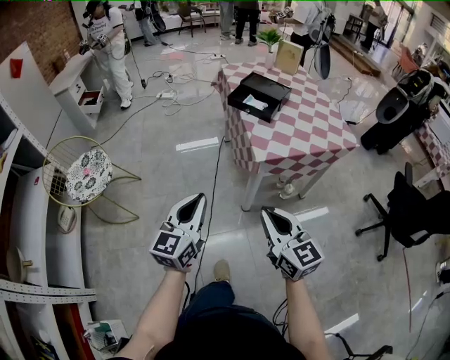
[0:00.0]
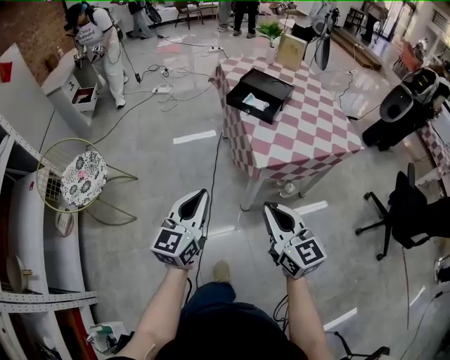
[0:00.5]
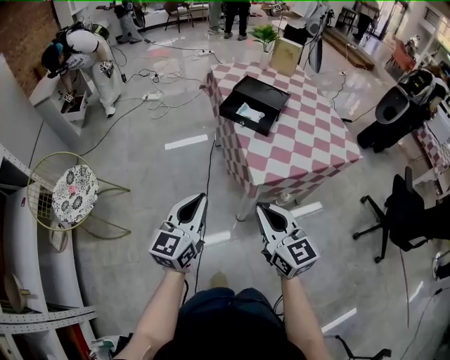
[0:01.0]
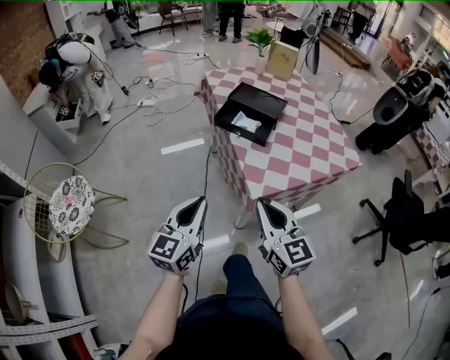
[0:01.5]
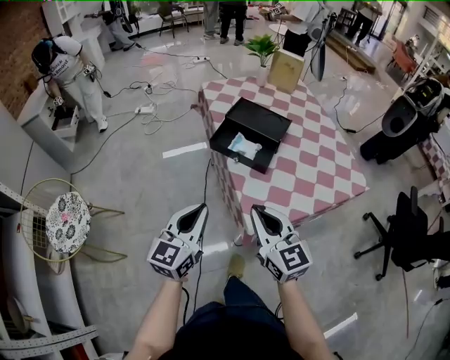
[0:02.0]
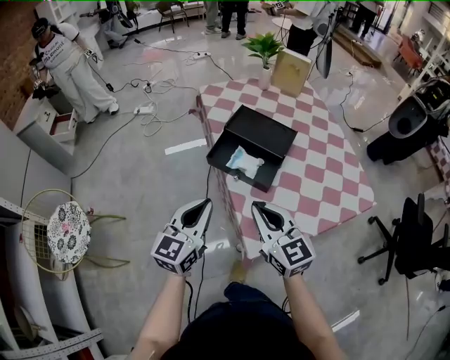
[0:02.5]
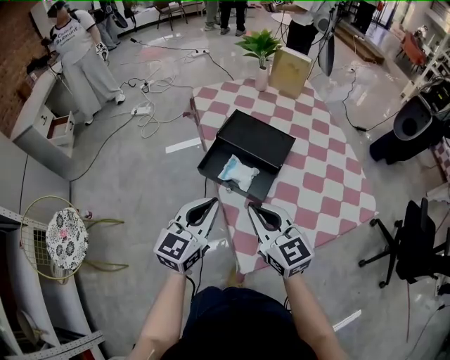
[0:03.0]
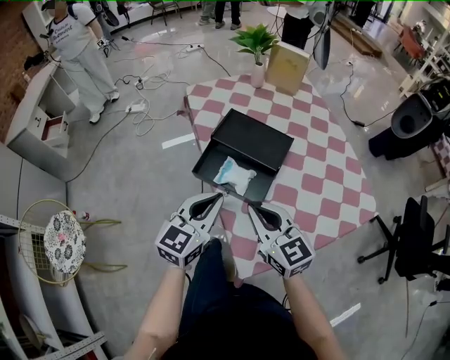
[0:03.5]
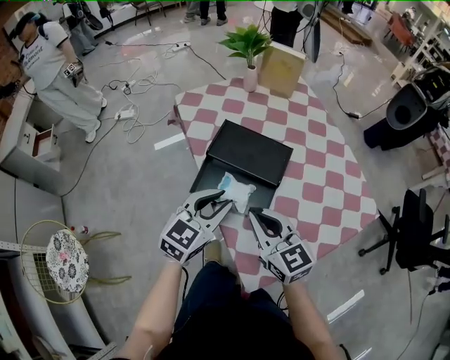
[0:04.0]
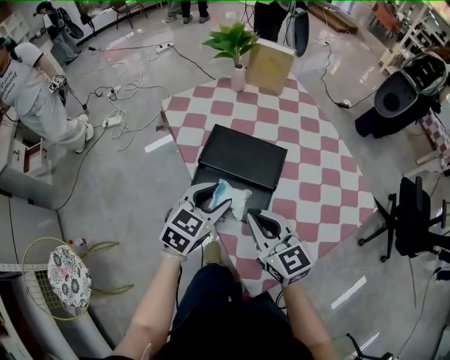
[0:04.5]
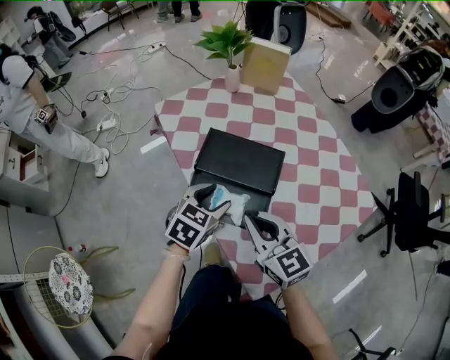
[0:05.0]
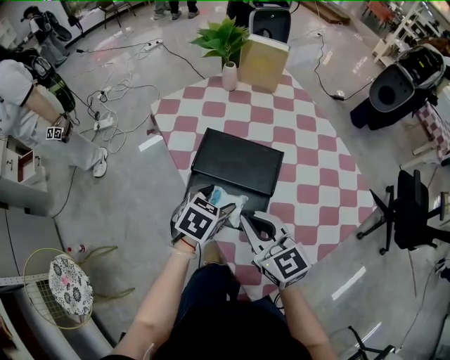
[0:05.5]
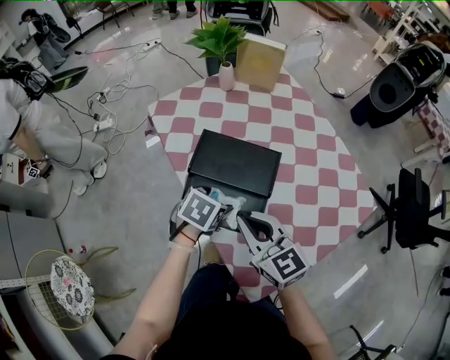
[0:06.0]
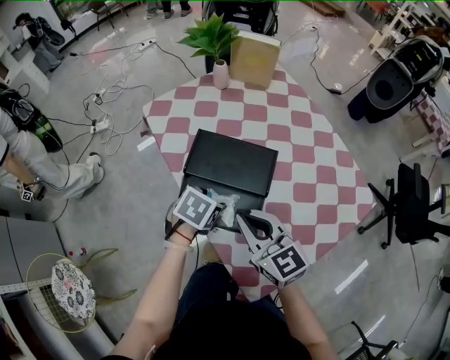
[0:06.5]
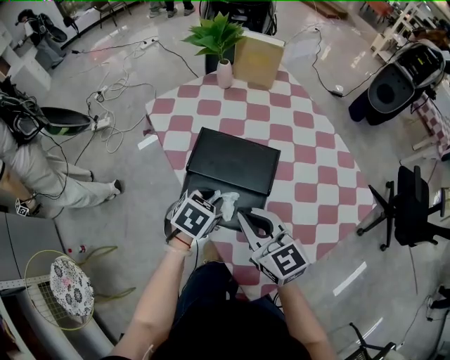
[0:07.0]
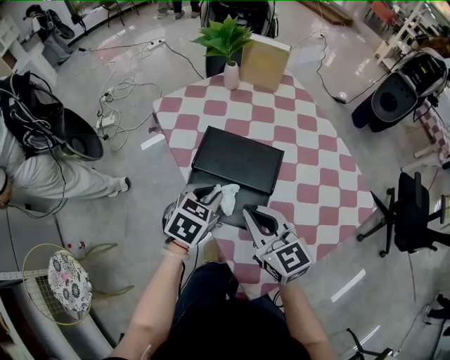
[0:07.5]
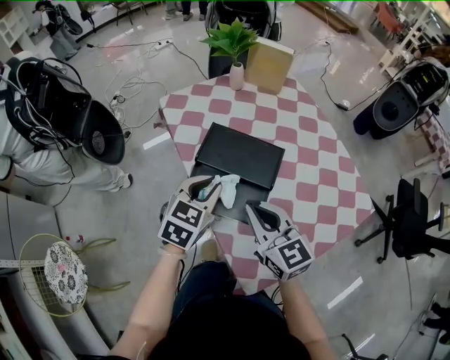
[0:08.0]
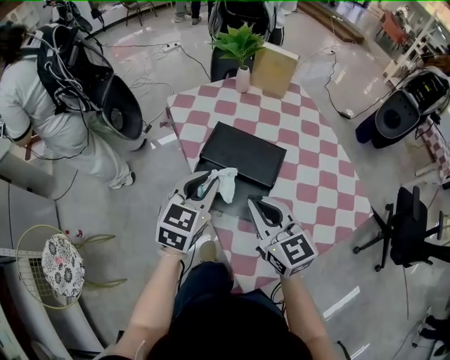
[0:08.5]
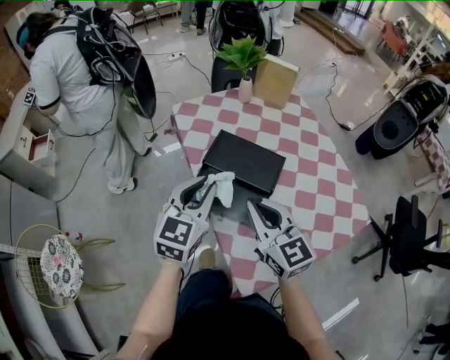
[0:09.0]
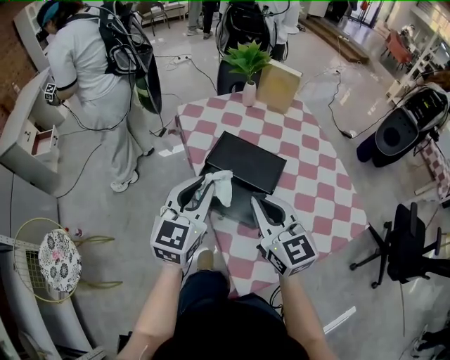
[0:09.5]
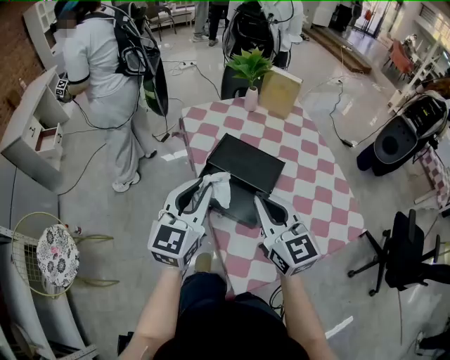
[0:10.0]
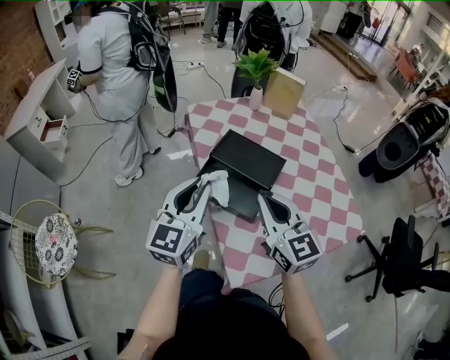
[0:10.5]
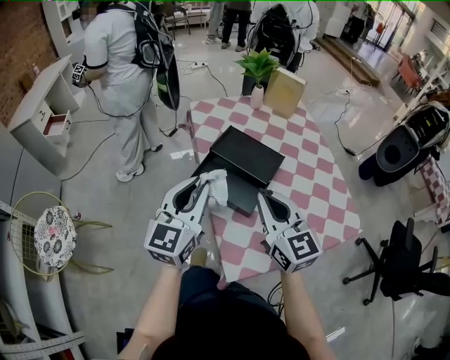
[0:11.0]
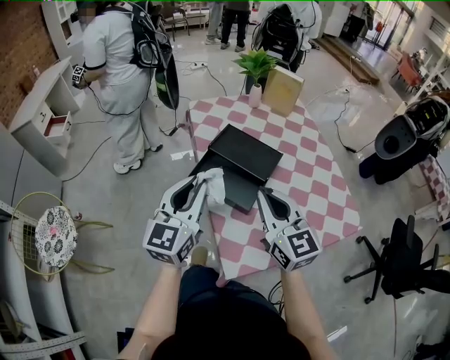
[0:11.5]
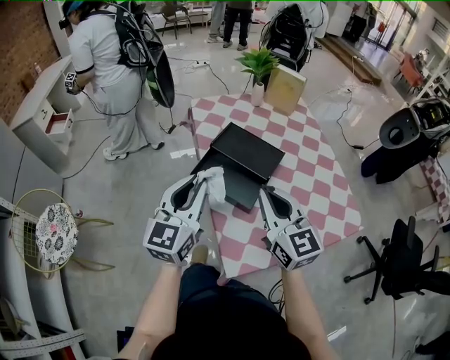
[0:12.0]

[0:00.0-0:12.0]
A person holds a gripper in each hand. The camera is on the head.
0:00.0 to 0:02.0: The grippers both shift forward by roughly 30 cm.
0:02.0 to 0:04.0: Both grippers move forward, some 25 cm. The left gripper rotates roughly 30 degrees.
0:04.0 to 0:06.0: The left gripper goes about 15 cm downward and forward, tips its fingers downward by roughly 40 degrees, and opens up. The right gripper shifts by about 5 cm.
0:06.0 to 0:08.0: The left gripper heads upward, covering some 10 cm, rotates some 30 degrees, and closes.
0:08.0 to 0:10.0: The left gripper goes some 15 cm upward and backward, and turns by some 30 degrees. Meanwhile the right gripper shifts about 10 cm upward.
0:10.0 to 0:12.0: Both grippers move backward, roughly 5 cm.

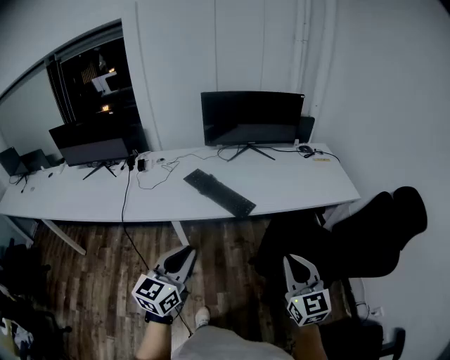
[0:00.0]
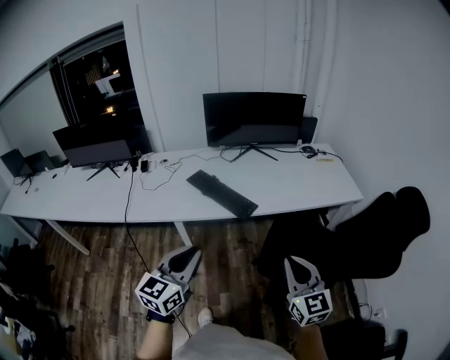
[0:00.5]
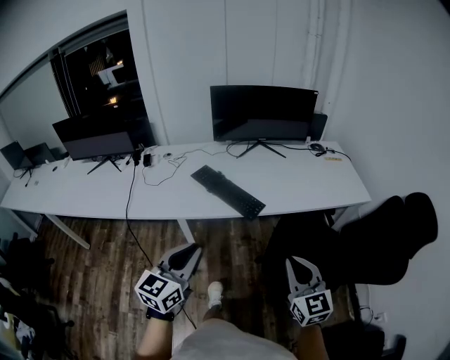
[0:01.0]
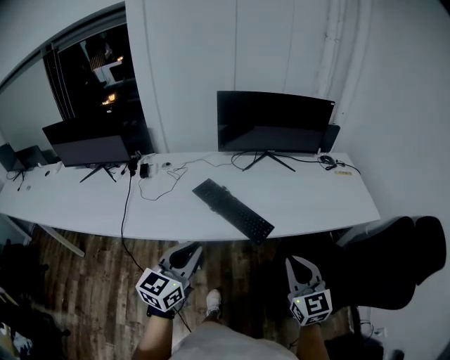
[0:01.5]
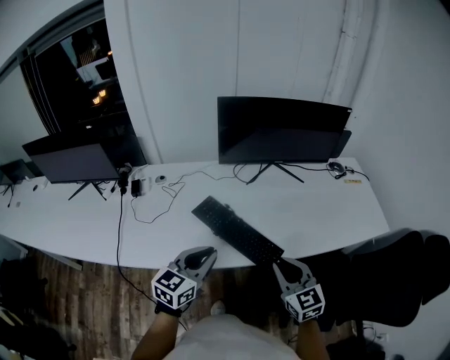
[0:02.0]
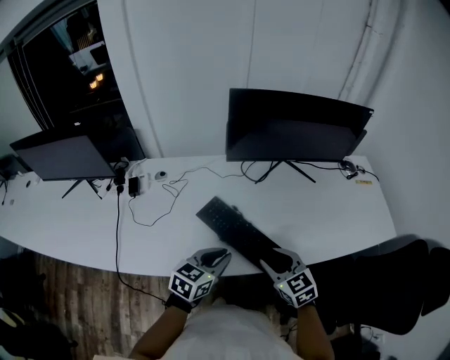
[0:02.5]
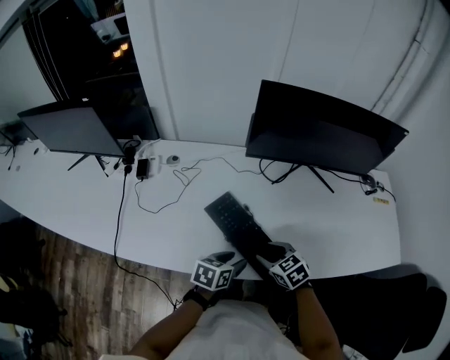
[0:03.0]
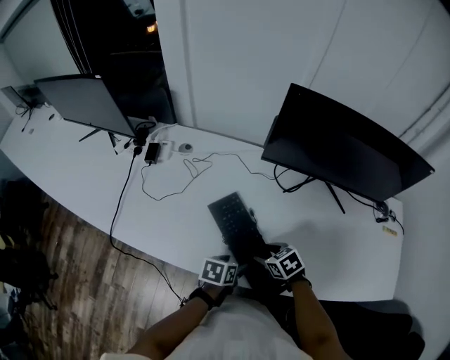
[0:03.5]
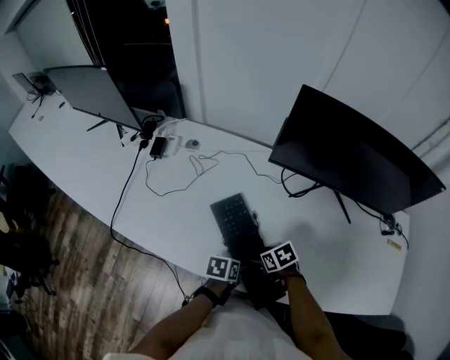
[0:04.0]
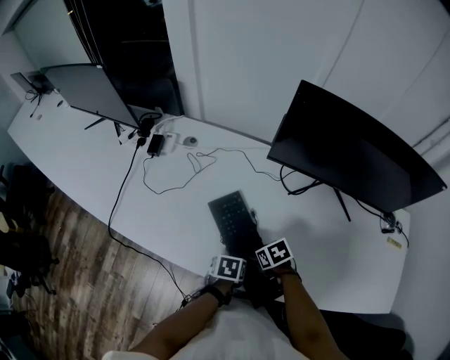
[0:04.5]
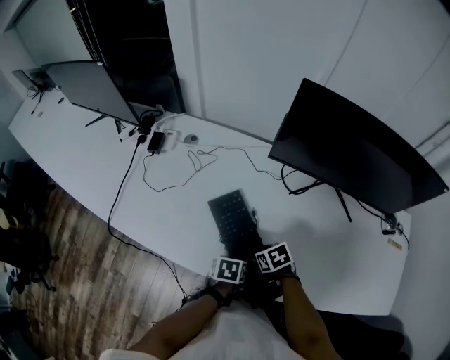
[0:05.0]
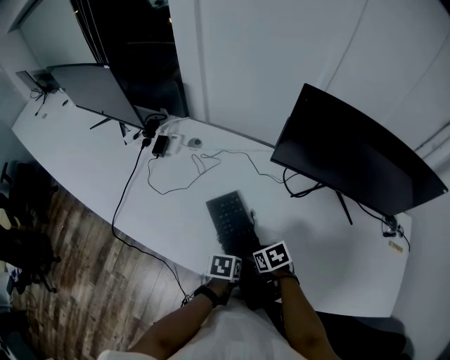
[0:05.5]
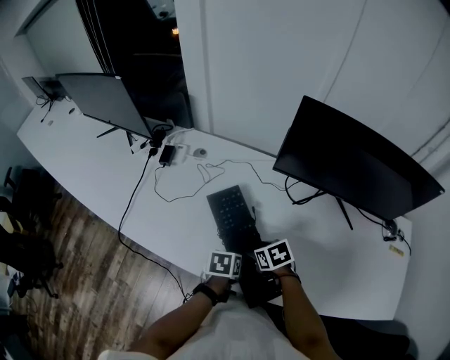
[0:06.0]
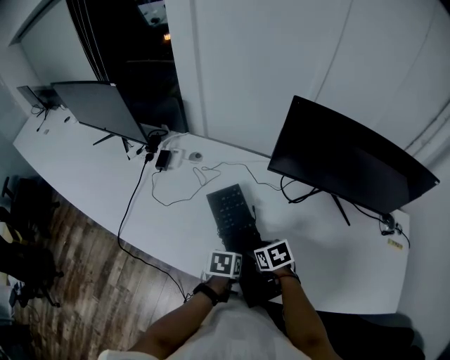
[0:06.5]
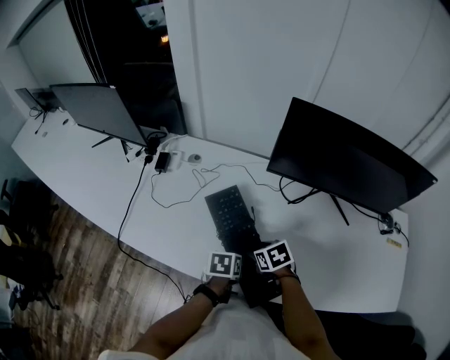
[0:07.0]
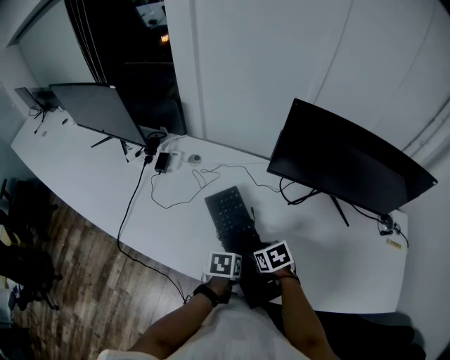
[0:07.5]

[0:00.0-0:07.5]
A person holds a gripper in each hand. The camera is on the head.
0:00.0 to 0:02.0: The left gripper heads forward, covering roughly 30 cm. Meanwhile the right gripper heads forward and to the left, covering roughly 35 cm.
0:02.0 to 0:04.0: Both grippers move downward, some 25 cm. The left gripper angles its fingers downward, by some 40 degrees, and opens. The right gripper tilts its fingers some 50 degrees downward, and opens.
0:04.0 to 0:05.5: The grippers stay close to where they were, moving slightly.
0:05.5 to 0:07.5: The left gripper changes place by approximately 5 cm, while the right gripper goes approximately 5 cm upward.

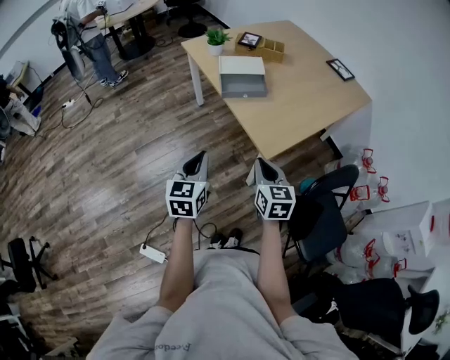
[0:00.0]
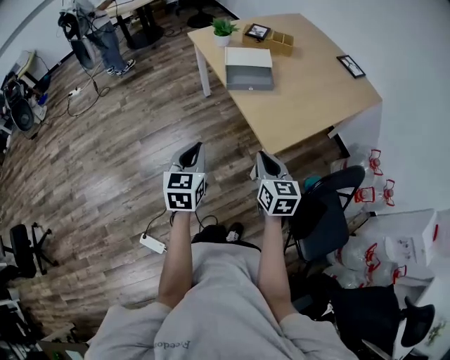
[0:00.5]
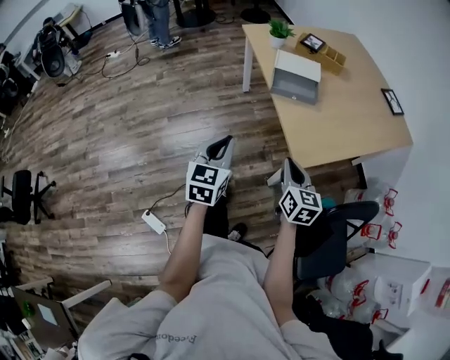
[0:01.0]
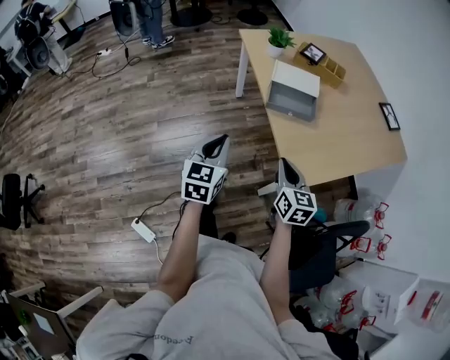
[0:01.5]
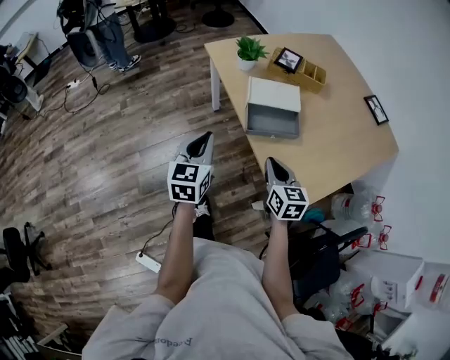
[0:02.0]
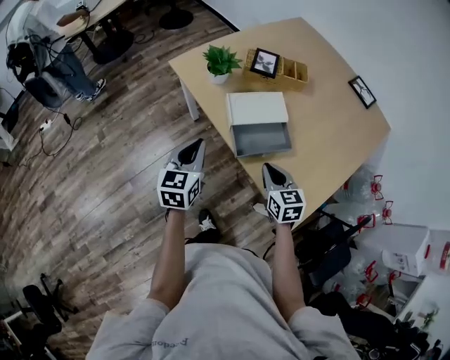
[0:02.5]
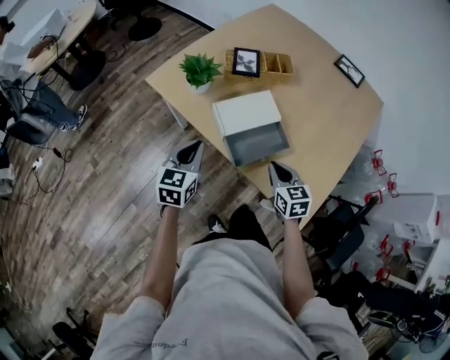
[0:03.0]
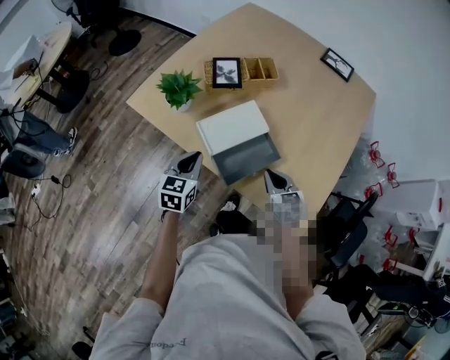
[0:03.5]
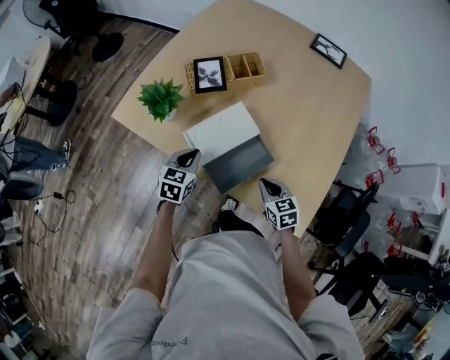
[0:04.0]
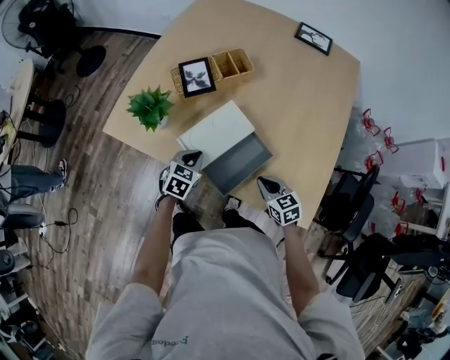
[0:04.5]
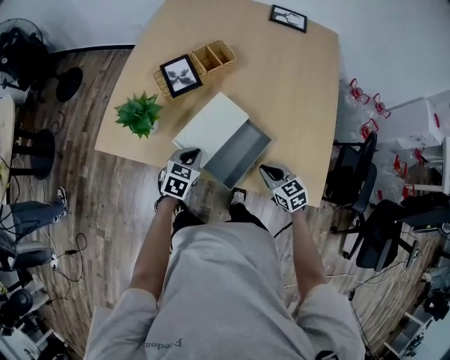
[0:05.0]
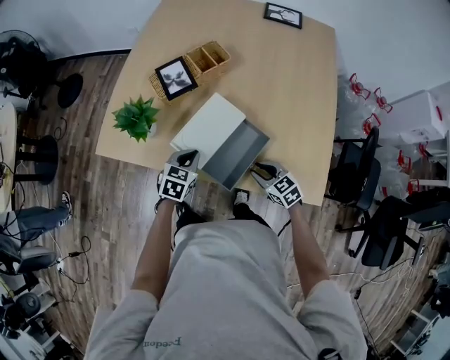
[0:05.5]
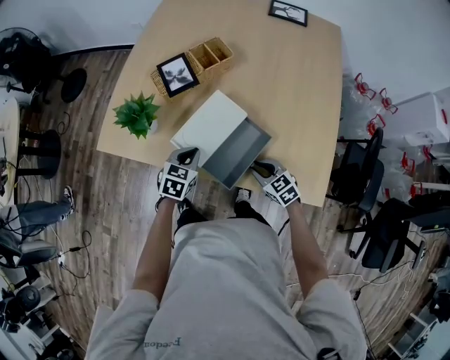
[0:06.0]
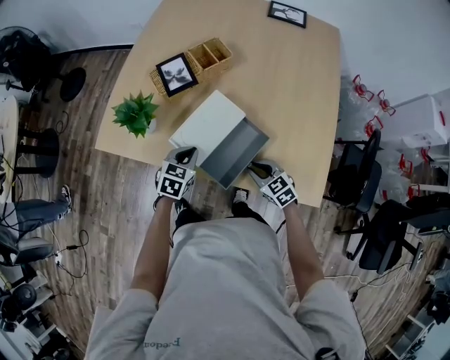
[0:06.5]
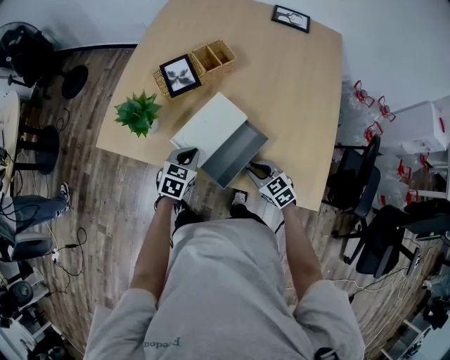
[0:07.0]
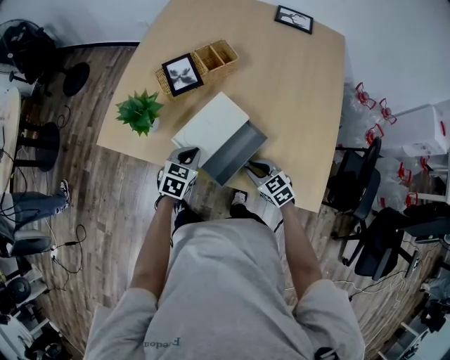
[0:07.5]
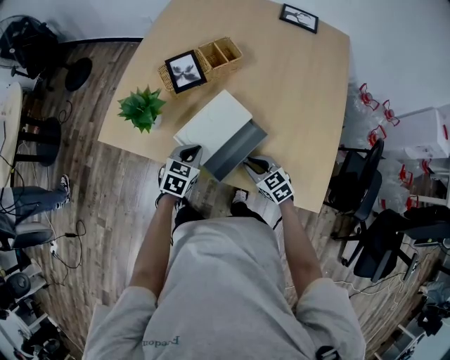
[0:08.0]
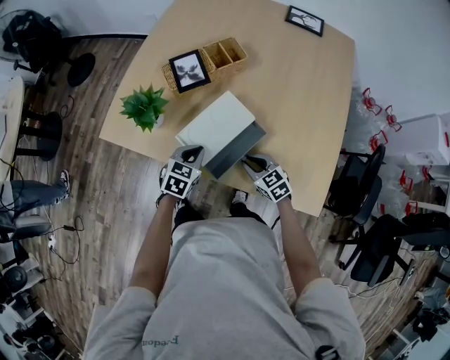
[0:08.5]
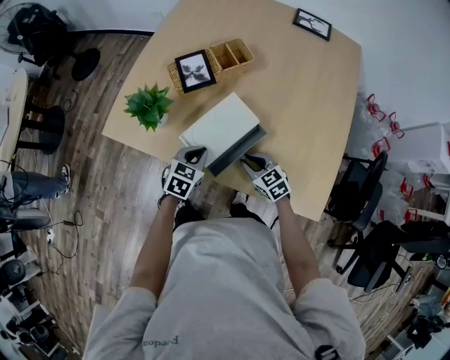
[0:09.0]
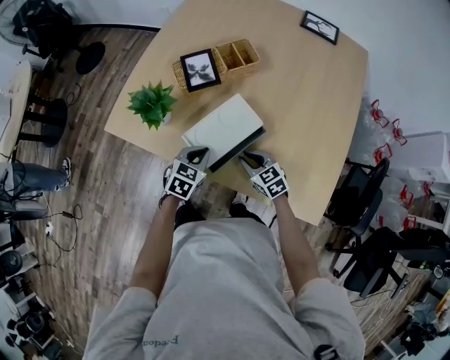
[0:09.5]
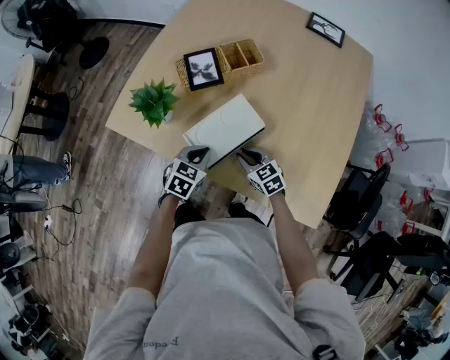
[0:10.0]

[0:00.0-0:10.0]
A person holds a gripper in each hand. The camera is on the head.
0:00.0 to 0:02.0: The two grippers go about 30 cm forward.
0:02.0 to 0:04.0: The right gripper moves some 20 cm, and rotates approximately 30 degrees; the left gripper ends up approximately 35 cm from where it was, and turns by roughly 50 degrees.
0:04.0 to 0:06.0: The right gripper goes approximately 5 cm downward. The left gripper ends up approximately 5 cm from where it was, and changes its angle by roughly 20 degrees.
0:06.0 to 0:08.0: The grippers stay close to where they were, moving slightly.
0:08.0 to 0:10.0: The right gripper is displaced forward by some 5 cm.
